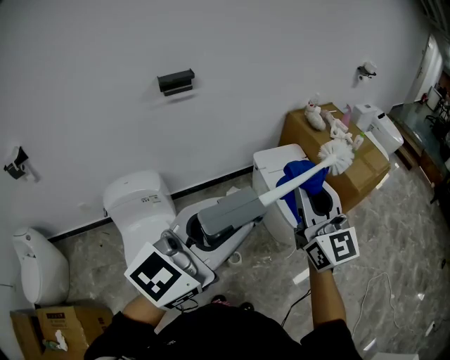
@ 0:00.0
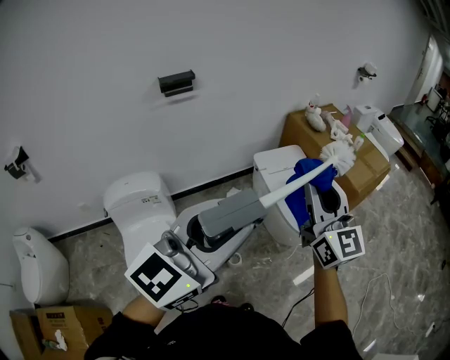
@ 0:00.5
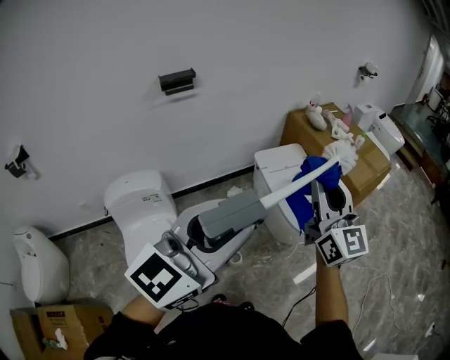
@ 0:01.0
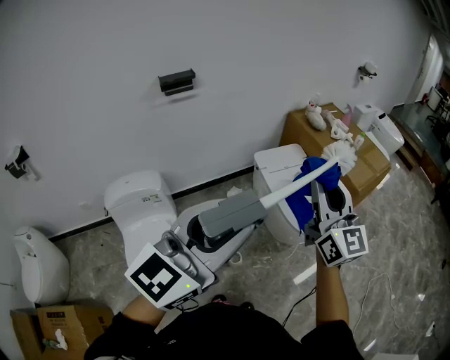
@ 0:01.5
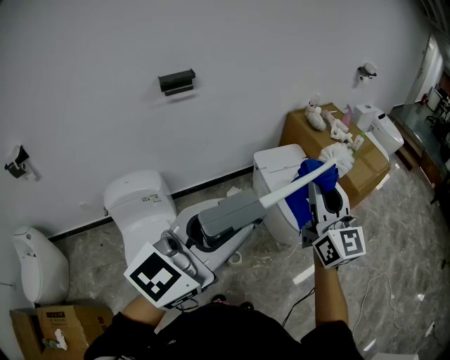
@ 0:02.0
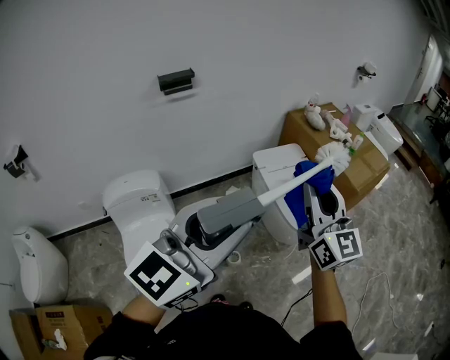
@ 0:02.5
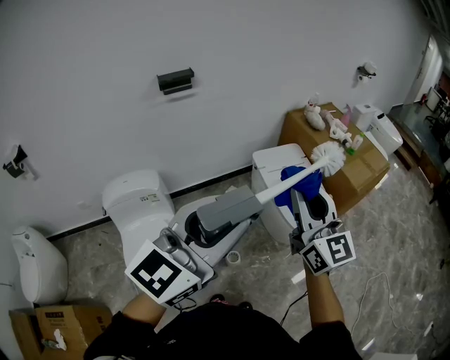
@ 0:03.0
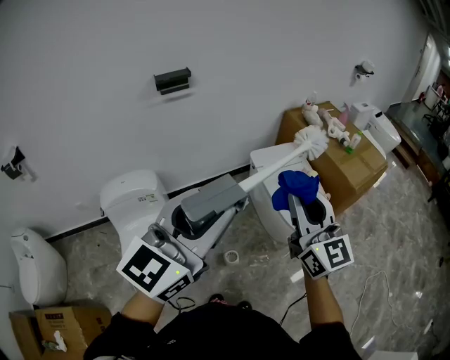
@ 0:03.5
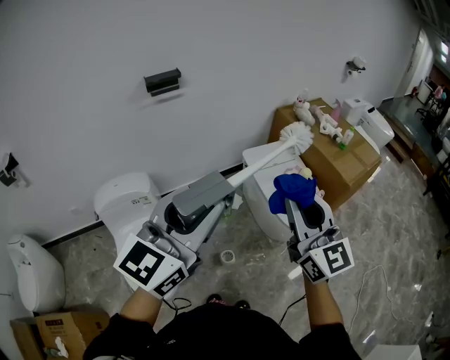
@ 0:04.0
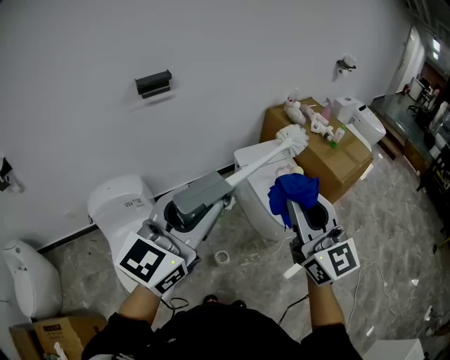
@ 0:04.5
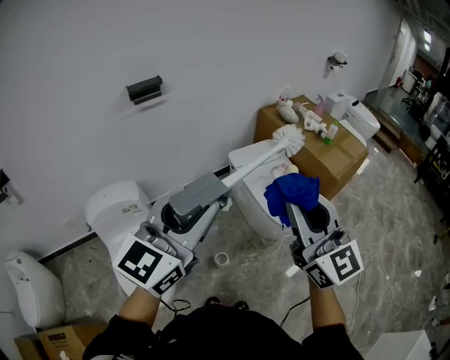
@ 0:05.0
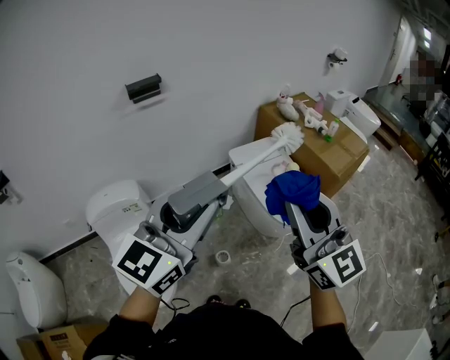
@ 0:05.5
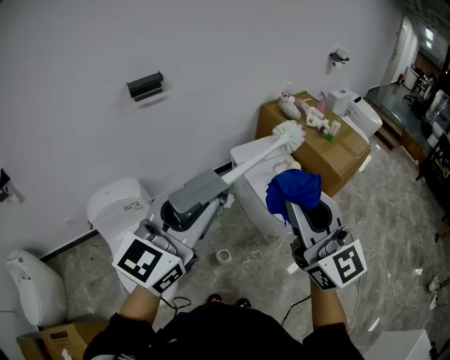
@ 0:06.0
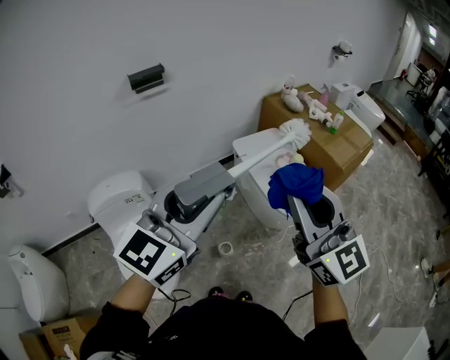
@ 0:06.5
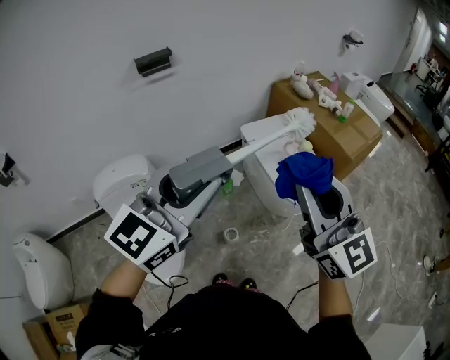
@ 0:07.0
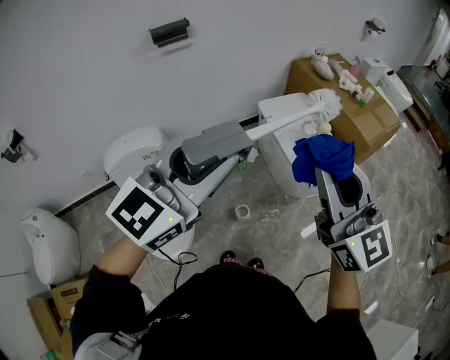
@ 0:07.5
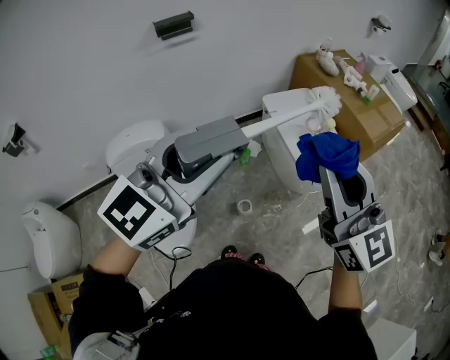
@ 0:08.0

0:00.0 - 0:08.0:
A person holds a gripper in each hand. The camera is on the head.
0:00.0 - 0:02.0: The grippers move only a little.
0:02.0 - 0:04.0: The right gripper moves roughly 5 cm.
0:04.0 - 0:06.0: The right gripper changes place by some 5 cm.
0:06.0 - 0:08.0: The grippers move only a little.

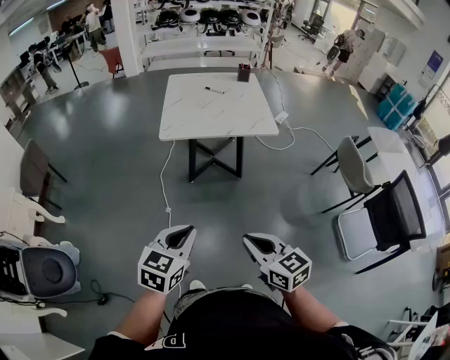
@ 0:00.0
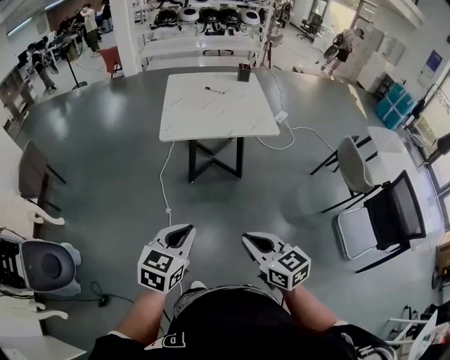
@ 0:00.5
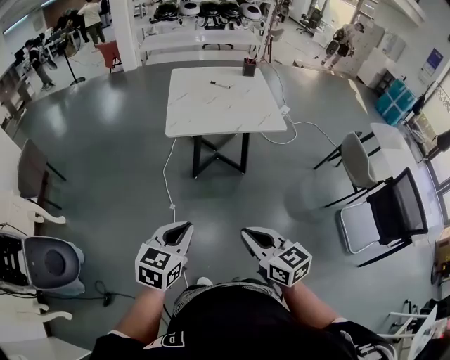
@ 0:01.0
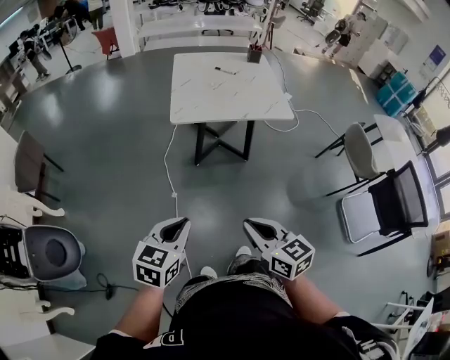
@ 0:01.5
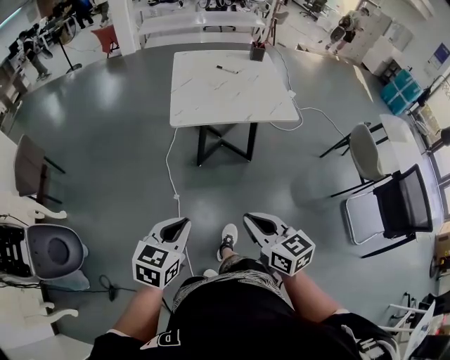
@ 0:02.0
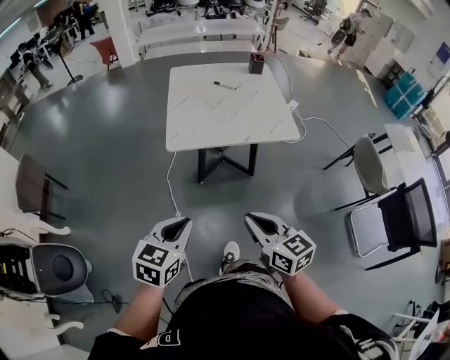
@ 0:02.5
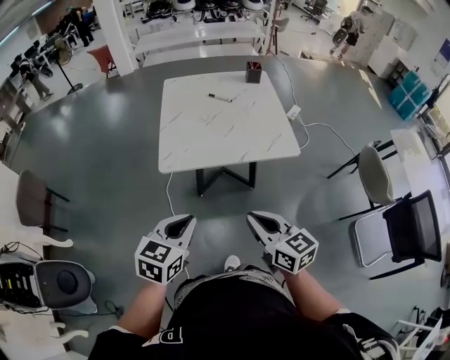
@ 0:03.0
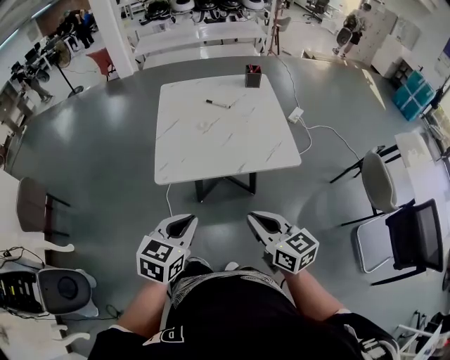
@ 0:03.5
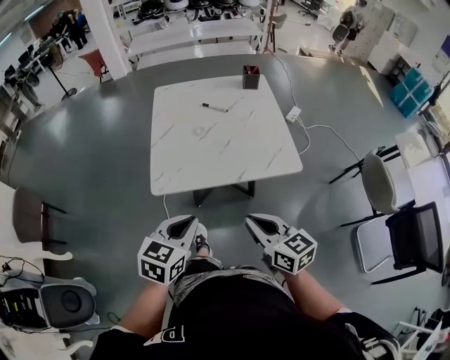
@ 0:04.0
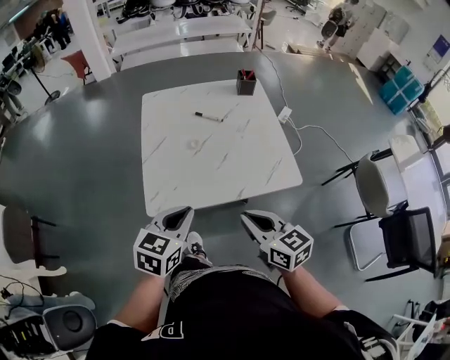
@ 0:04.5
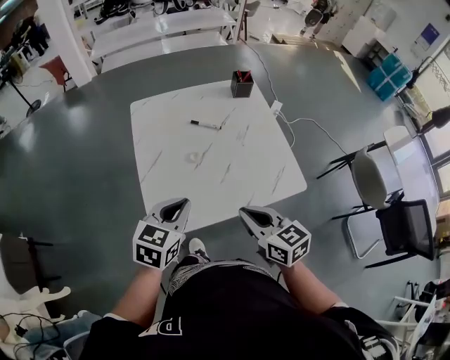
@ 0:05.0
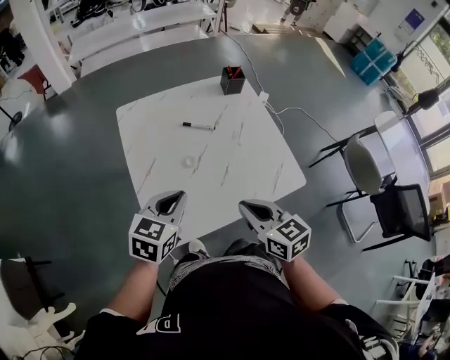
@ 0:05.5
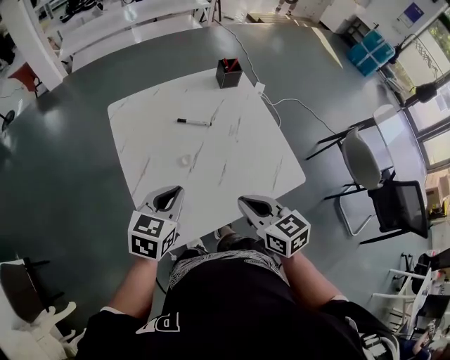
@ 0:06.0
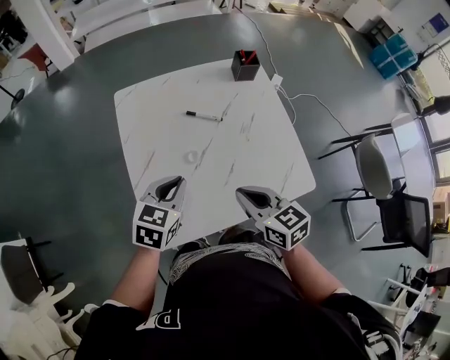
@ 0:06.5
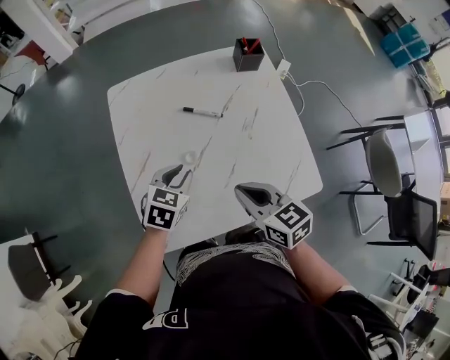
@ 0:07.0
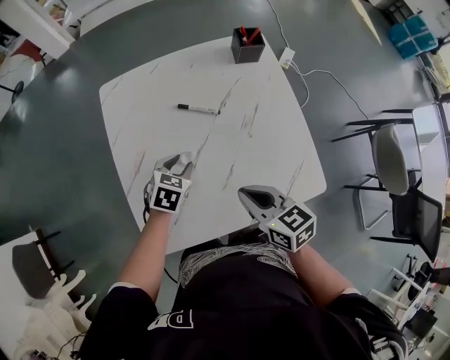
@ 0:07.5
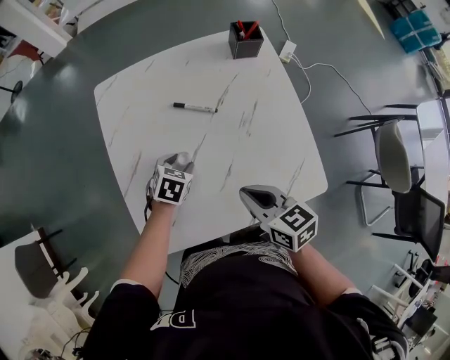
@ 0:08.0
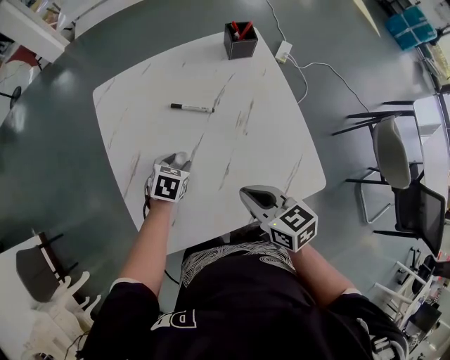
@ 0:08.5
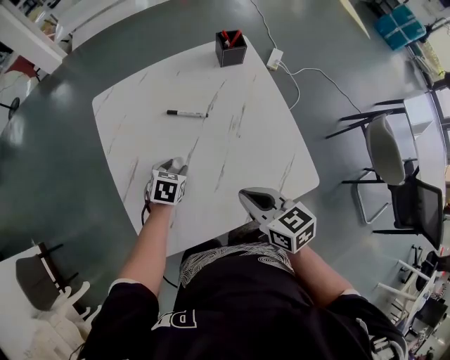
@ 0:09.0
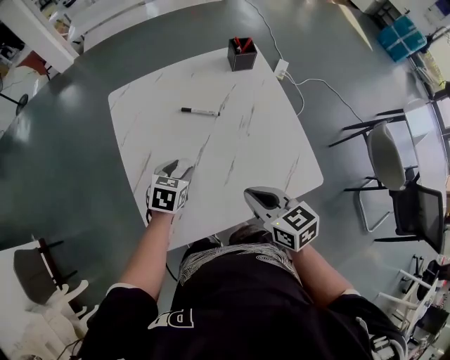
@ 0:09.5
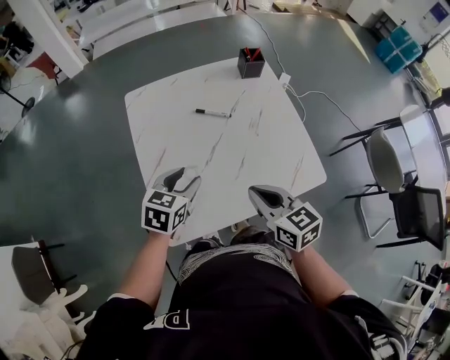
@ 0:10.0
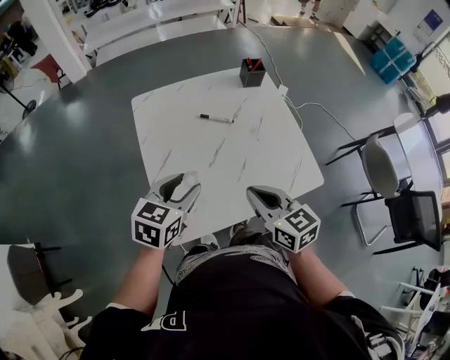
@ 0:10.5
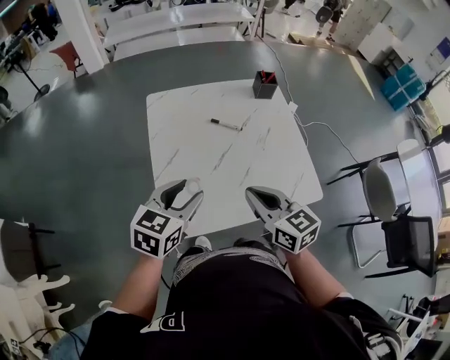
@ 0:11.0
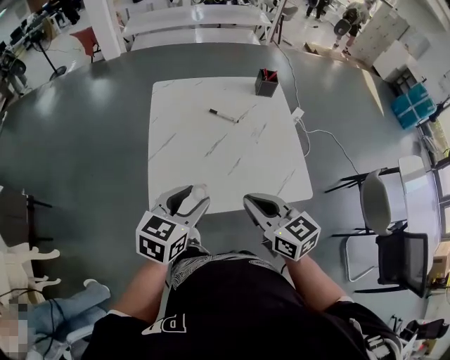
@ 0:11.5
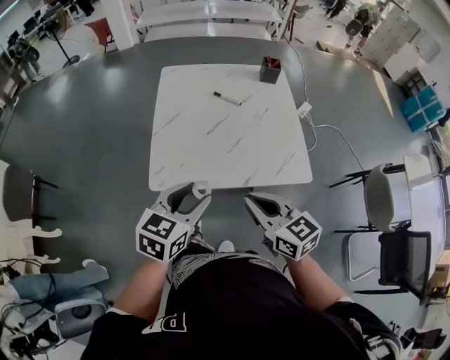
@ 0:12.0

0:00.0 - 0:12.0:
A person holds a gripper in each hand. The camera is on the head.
0:00.0 - 0:02.0: The right gripper shifts about 15 cm forward and to the left. Meanwhile the left gripper goes approximately 15 cm to the left and forward.
0:02.0 - 0:04.0: The grippers both shift forward by some 30 cm.
0:04.0 - 0:06.0: Both grippers move forward, some 30 cm.
0:06.0 - 0:08.0: The left gripper travels downward and forward by approximately 25 cm, tilts its fingers about 30 degrees downward, and opens; the right gripper is displaced forward and downward by some 15 cm.
0:08.0 - 0:10.0: The right gripper travels backward and upward by approximately 10 cm. The left gripper shifts roughly 20 cm upward and backward, and rotates some 20 degrees.
0:10.0 - 0:12.0: The left gripper travels backward and upward by some 25 cm, while the right gripper goes roughly 15 cm backward, and swivels about 20 degrees.

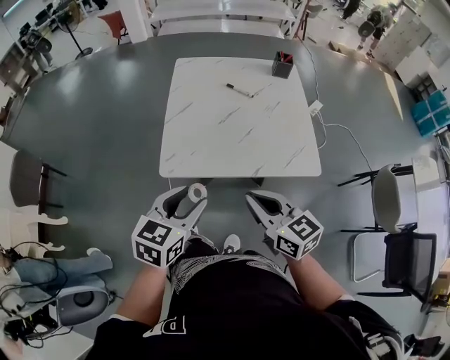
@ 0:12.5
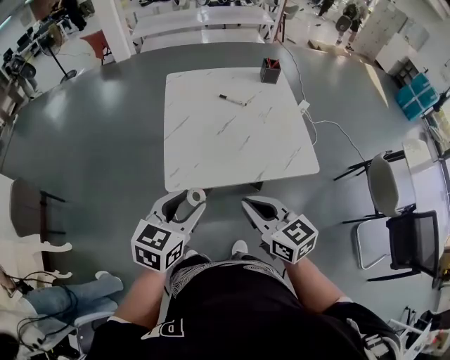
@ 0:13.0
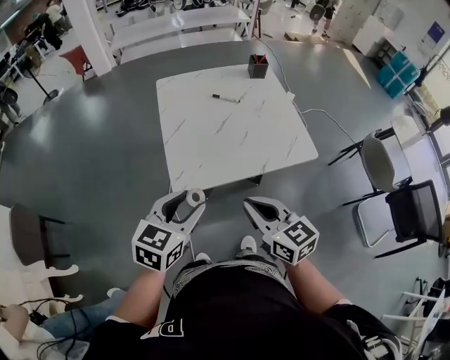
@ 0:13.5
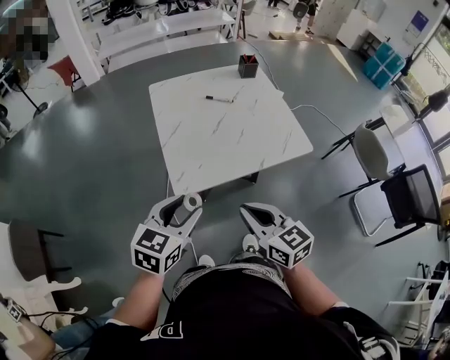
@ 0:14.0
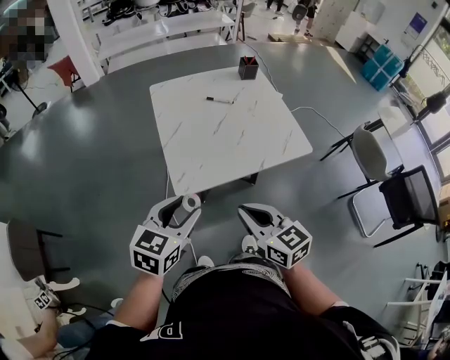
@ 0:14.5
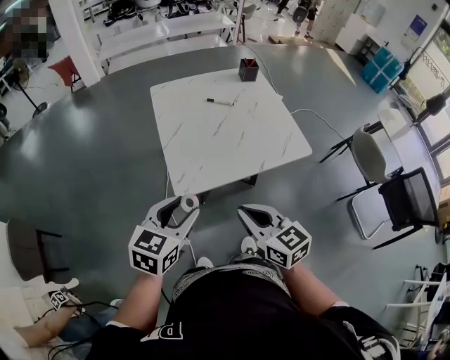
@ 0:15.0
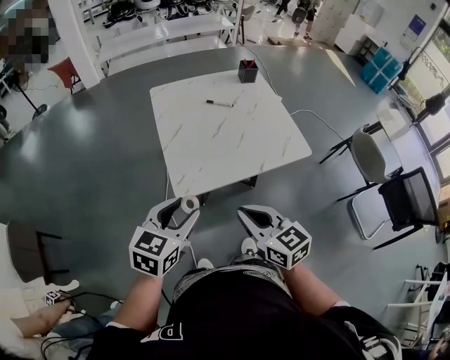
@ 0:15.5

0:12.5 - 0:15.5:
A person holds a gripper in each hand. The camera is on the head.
0:12.5 - 0:14.0: The right gripper shifts some 15 cm to the left and backward. The left gripper is displaced to the left by roughly 10 cm.
0:14.0 - 0:15.5: The grippers make only small movements.

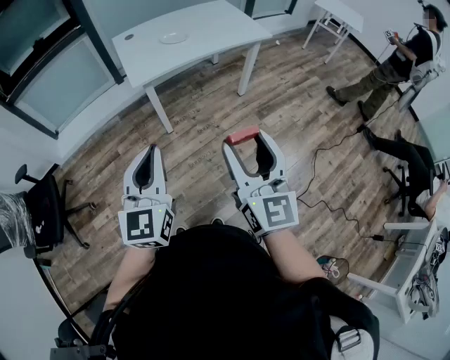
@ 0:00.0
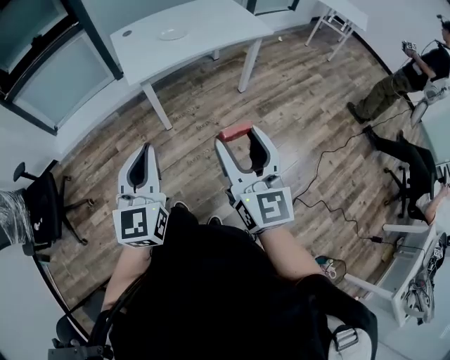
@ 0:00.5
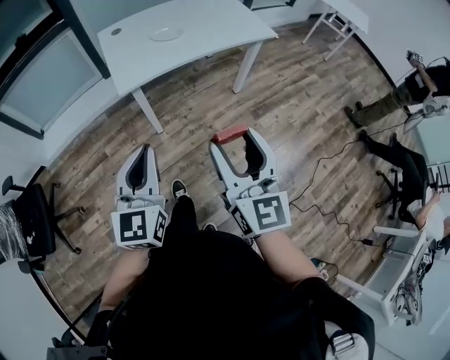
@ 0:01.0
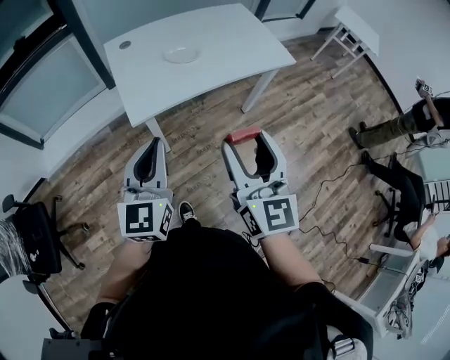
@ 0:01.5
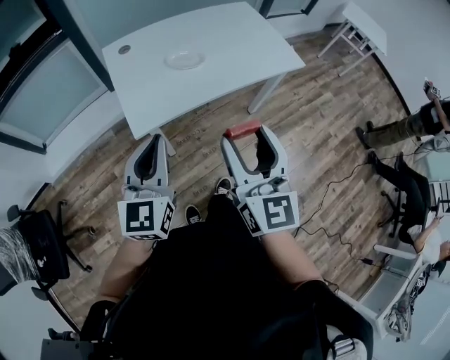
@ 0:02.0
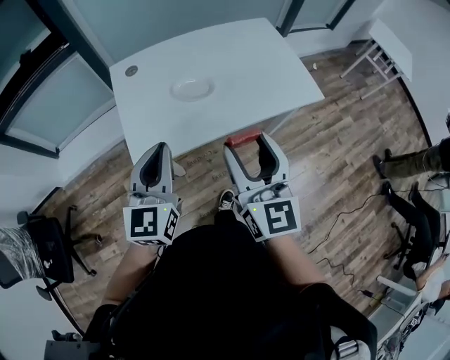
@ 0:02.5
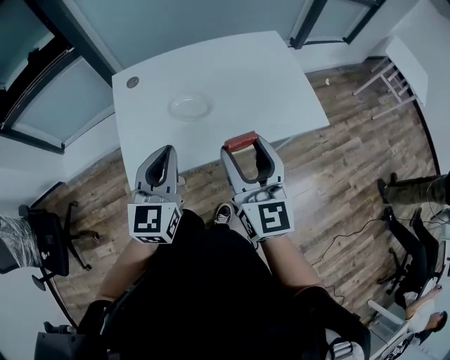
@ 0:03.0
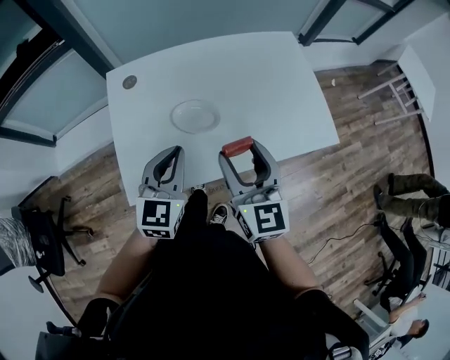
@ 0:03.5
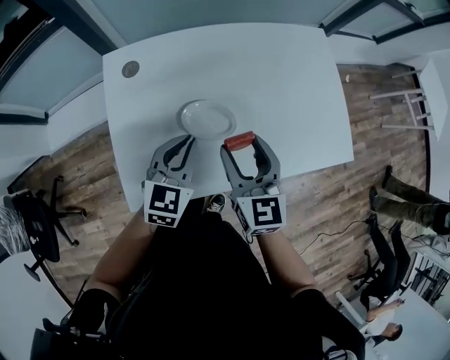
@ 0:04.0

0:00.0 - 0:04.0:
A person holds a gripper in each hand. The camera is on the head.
0:00.0 - 0:02.0: The two grippers go some 35 cm forward.
0:02.0 - 0:04.0: The left gripper shifts approximately 40 cm forward and downward, and rotates some 20 degrees. Meanwhile the right gripper heads forward, covering roughly 40 cm, and swivels roughly 30 degrees.
